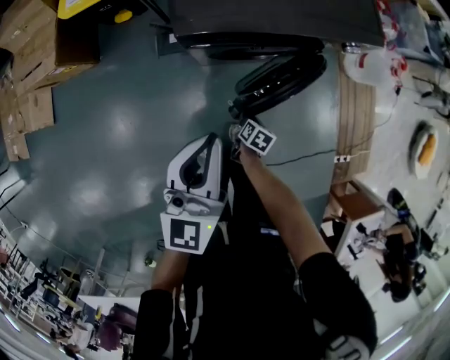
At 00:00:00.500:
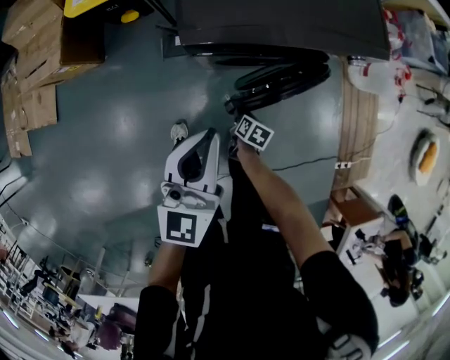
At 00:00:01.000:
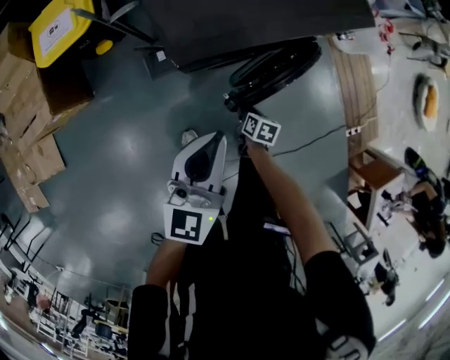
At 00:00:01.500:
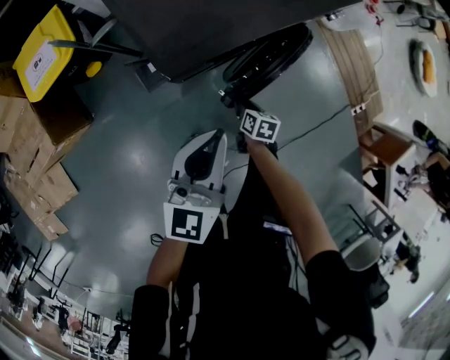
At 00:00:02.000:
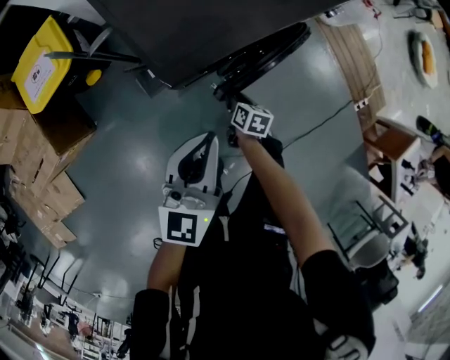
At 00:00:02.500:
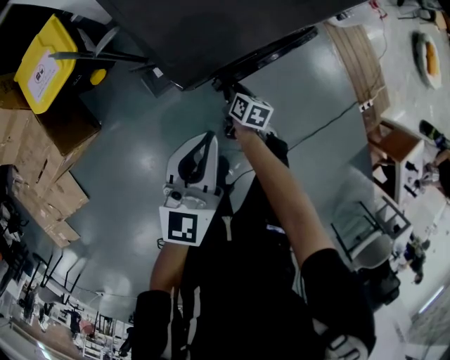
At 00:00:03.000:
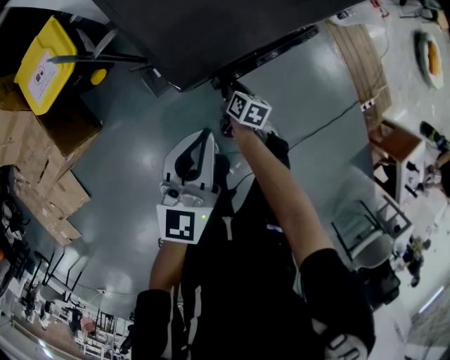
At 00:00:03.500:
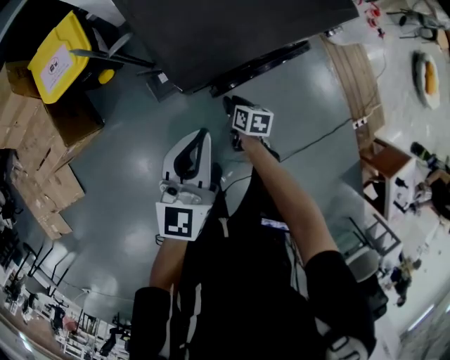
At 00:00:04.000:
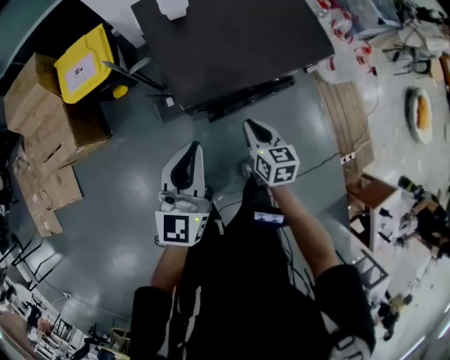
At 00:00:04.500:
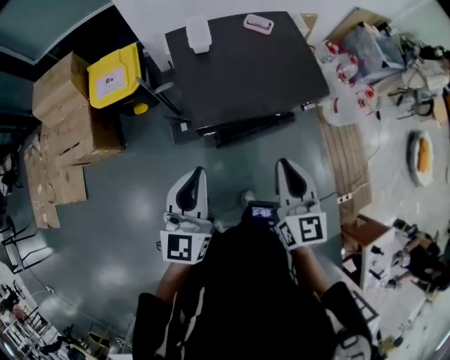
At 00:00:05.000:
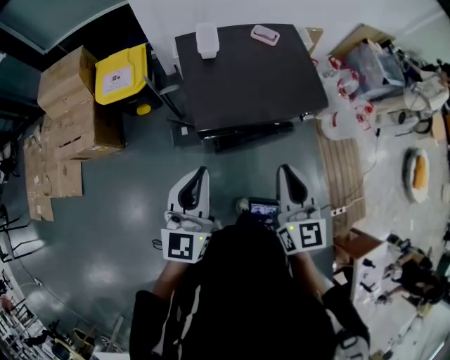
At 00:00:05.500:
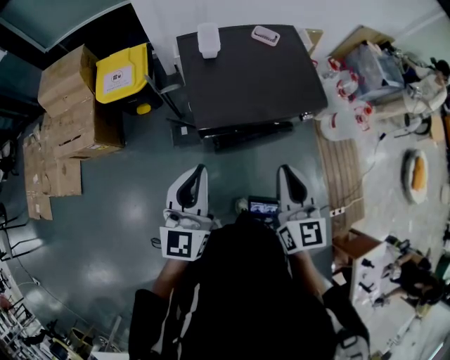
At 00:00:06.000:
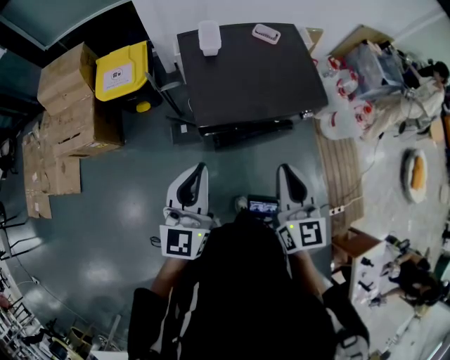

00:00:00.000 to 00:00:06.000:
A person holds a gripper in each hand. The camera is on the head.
00:00:00.000 to 00:00:02.000: The right gripper shifts about 15 cm to the left and forward. The left gripper goes some 10 cm forward, to the left and downward, and changes its angle by about 30 degrees.
00:00:02.000 to 00:00:04.000: The right gripper is displaced upward by some 30 cm, rotates roughly 40 degrees, and closes. Meanwhile the left gripper travels upward by about 15 cm.
00:00:04.000 to 00:00:06.000: The right gripper moves upward, approximately 25 cm, and changes its angle by about 30 degrees. The left gripper heads upward, covering about 10 cm.

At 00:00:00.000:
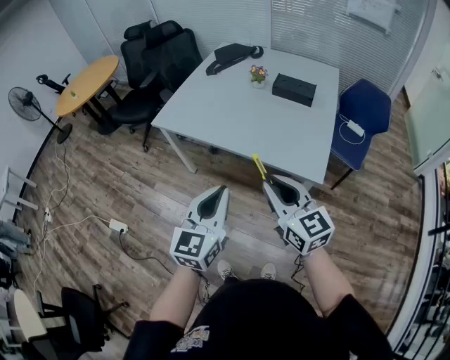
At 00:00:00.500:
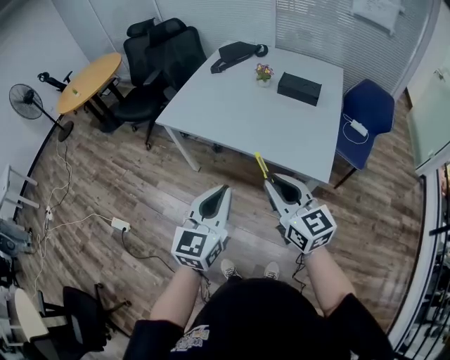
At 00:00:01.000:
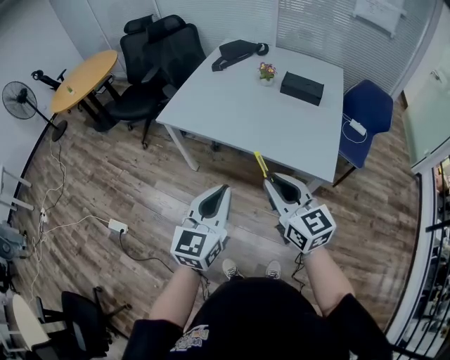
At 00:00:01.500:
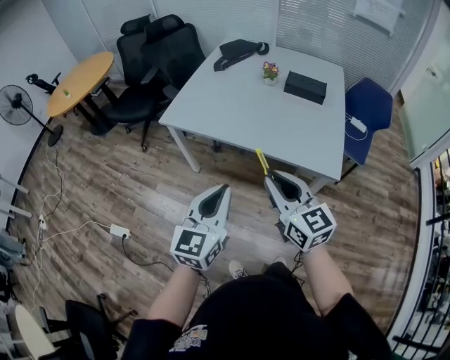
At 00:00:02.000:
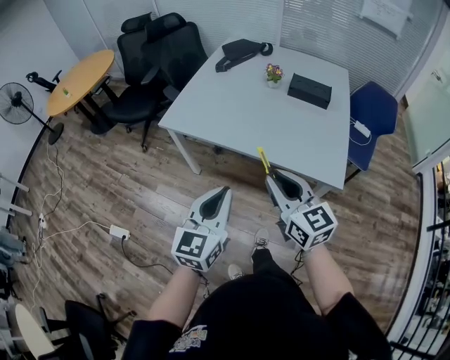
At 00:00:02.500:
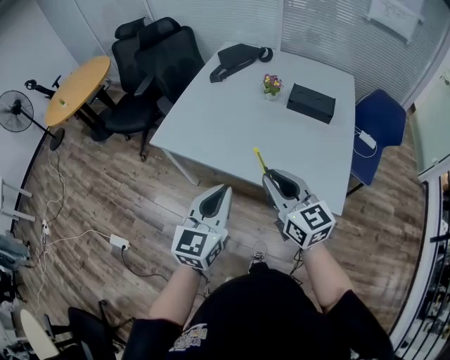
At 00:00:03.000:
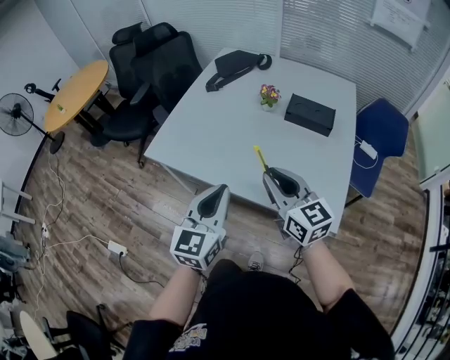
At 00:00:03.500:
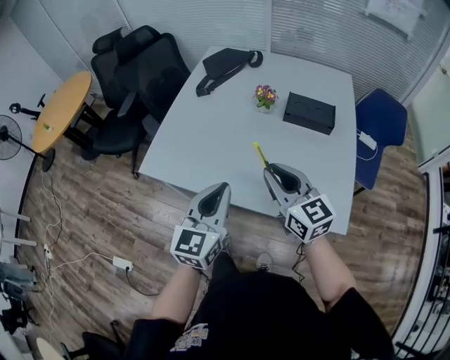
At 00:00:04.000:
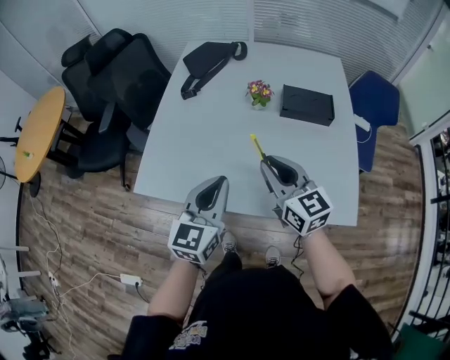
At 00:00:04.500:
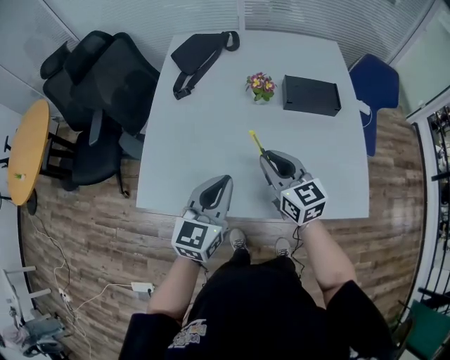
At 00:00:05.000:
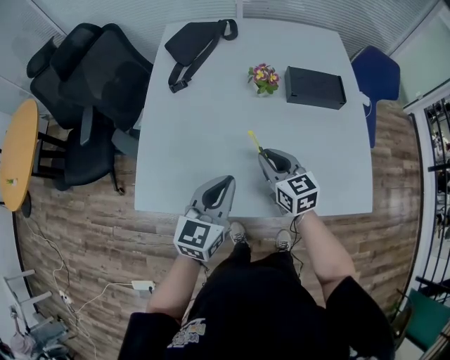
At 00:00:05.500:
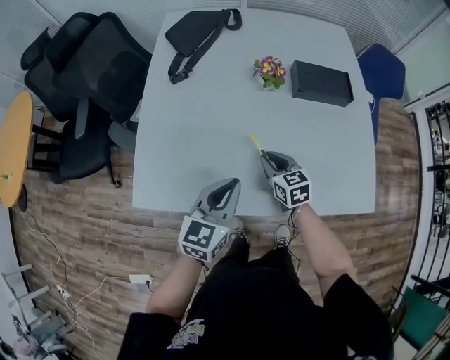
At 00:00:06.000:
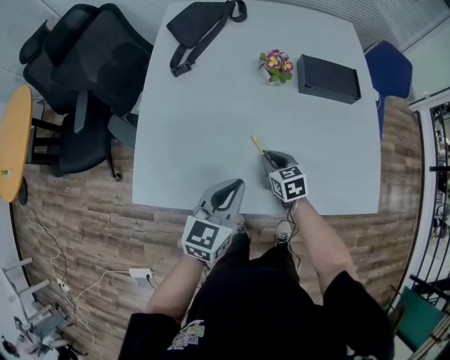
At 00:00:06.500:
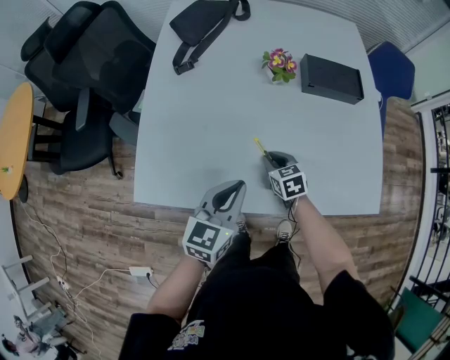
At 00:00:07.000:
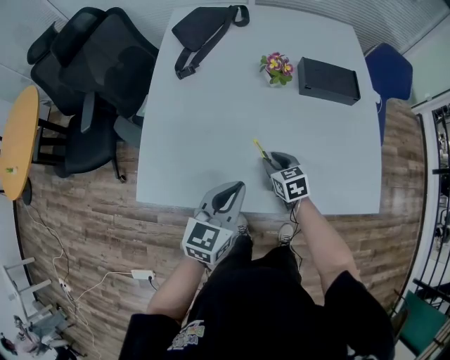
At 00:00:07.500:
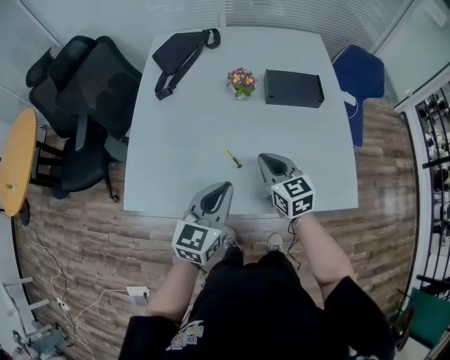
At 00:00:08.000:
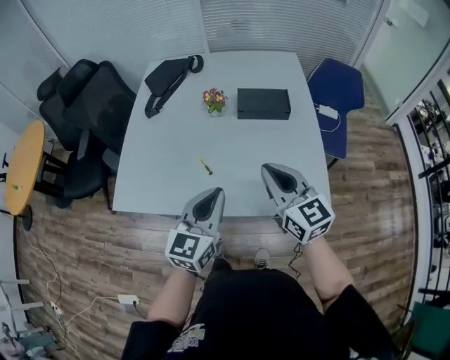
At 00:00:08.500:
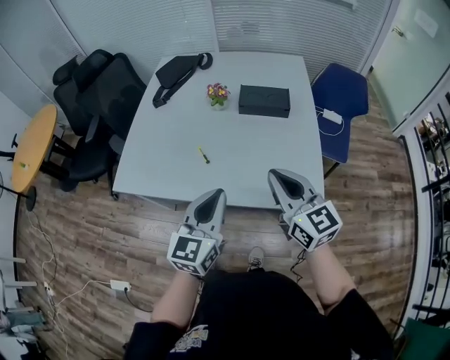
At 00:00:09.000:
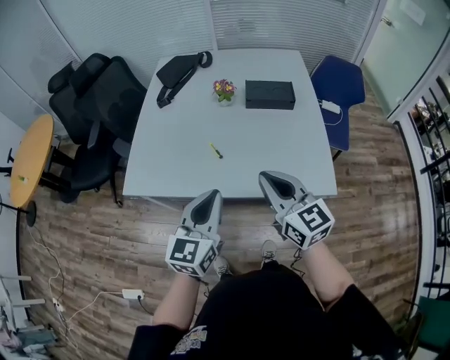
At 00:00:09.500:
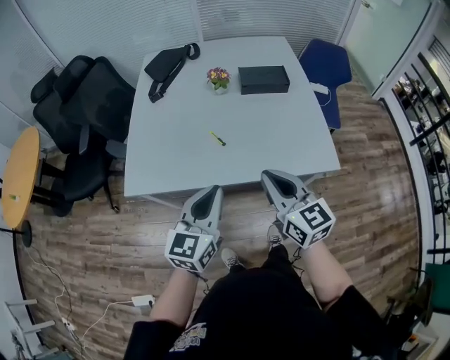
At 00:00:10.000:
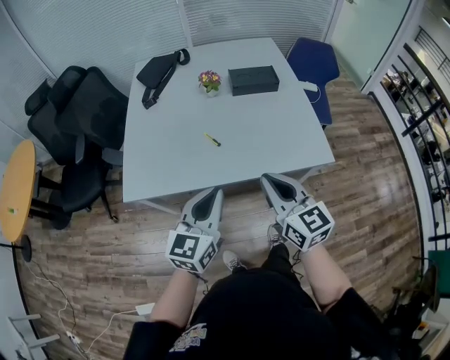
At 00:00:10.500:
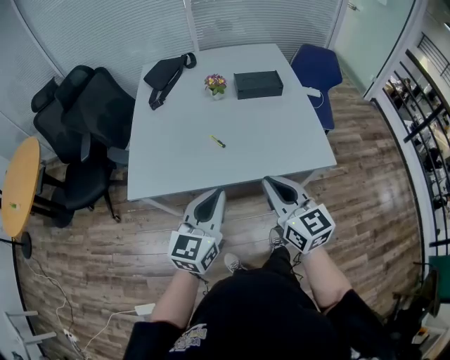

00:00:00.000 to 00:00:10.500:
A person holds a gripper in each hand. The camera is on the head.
00:00:00.000 to 00:00:02.000: The two grippers go approximately 15 cm to the left and forward.
00:00:02.000 to 00:00:04.000: The grippers both shift forward by about 35 cm.
00:00:04.000 to 00:00:06.500: The left gripper is displaced downward by roughly 15 cm, and swivels roughly 20 degrees. The right gripper is displaced downward by some 30 cm, and tips its fingers downward by roughly 40 degrees.
00:00:06.500 to 00:00:08.500: The left gripper heads to the right, upward and backward, covering about 30 cm, and rotates roughly 20 degrees. Meanwhile the right gripper goes approximately 50 cm upward, to the right and backward, and angles its fingers upward, by about 40 degrees.
00:00:08.500 to 00:00:10.500: Both grippers travel together to the left and backward, roughly 20 cm.

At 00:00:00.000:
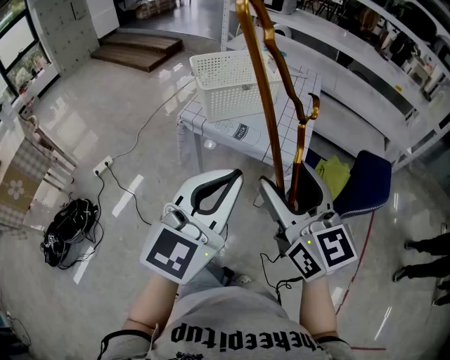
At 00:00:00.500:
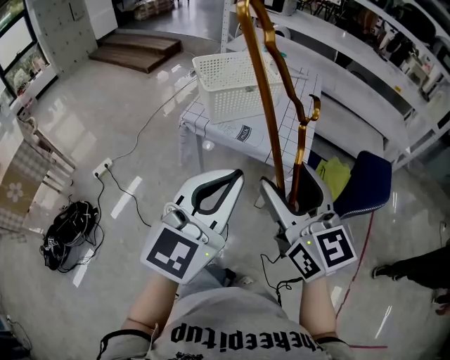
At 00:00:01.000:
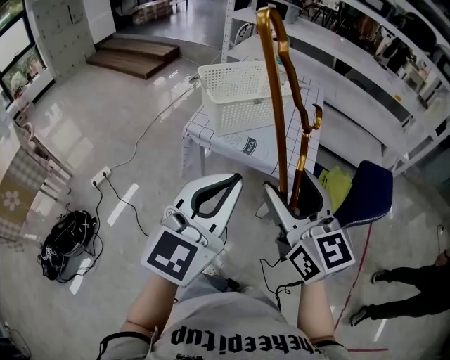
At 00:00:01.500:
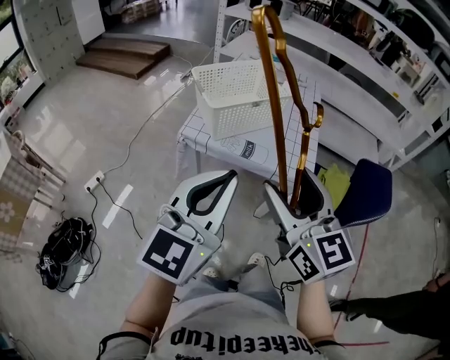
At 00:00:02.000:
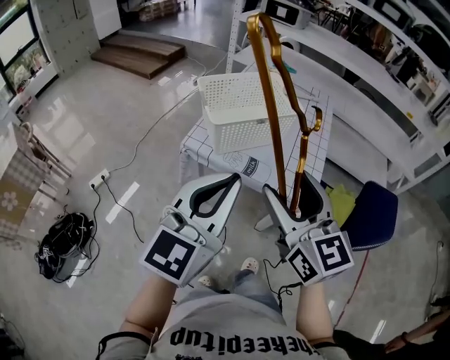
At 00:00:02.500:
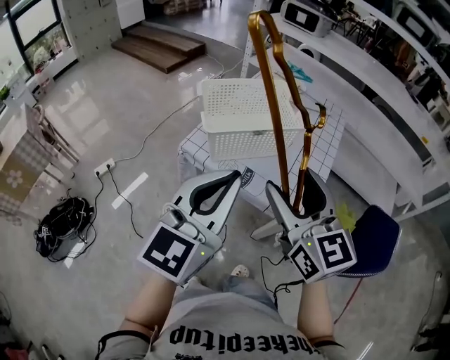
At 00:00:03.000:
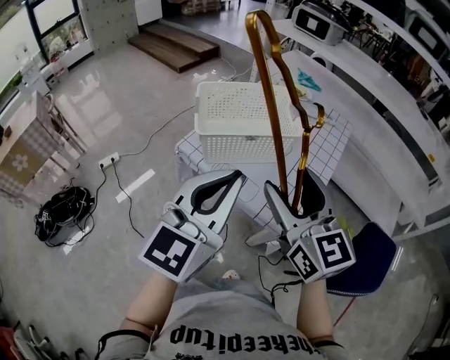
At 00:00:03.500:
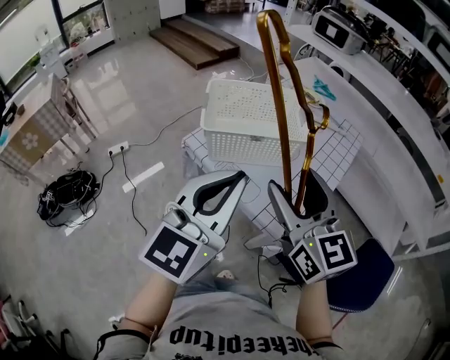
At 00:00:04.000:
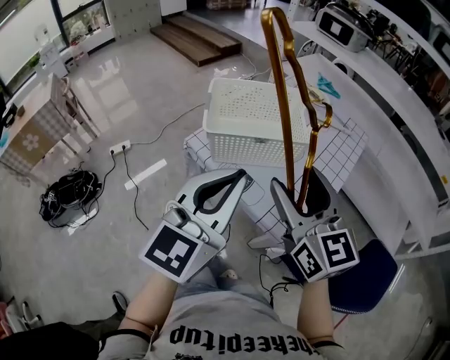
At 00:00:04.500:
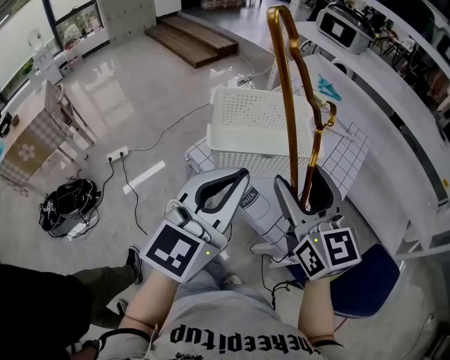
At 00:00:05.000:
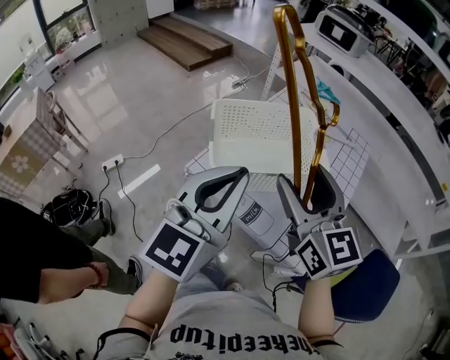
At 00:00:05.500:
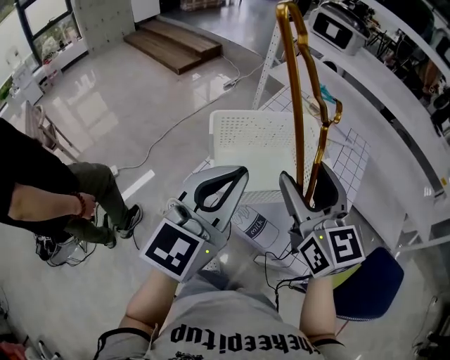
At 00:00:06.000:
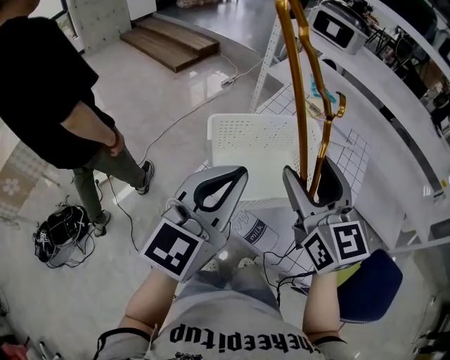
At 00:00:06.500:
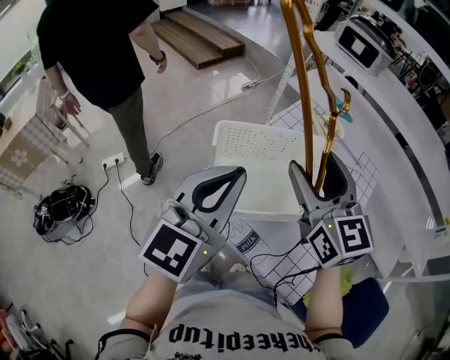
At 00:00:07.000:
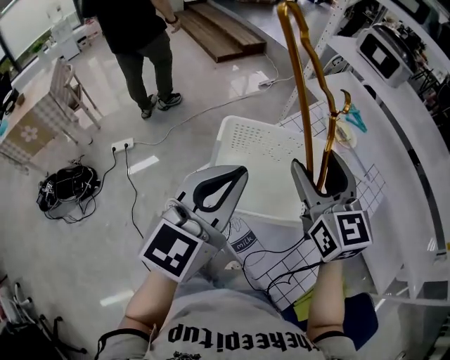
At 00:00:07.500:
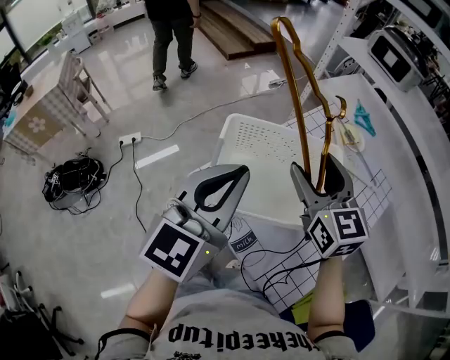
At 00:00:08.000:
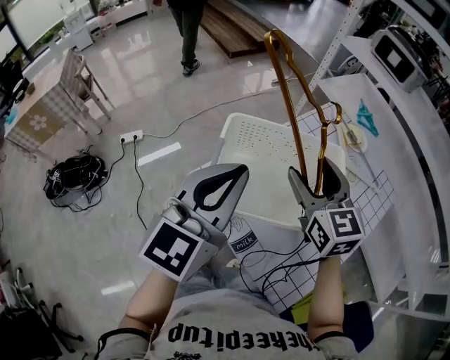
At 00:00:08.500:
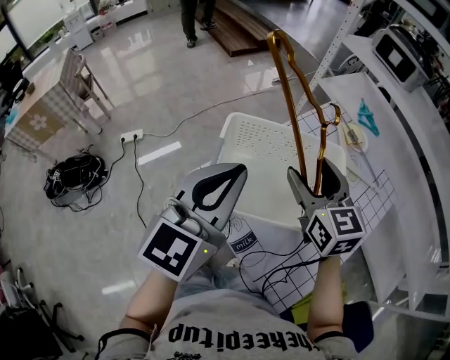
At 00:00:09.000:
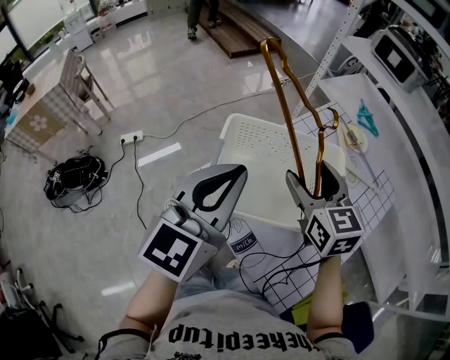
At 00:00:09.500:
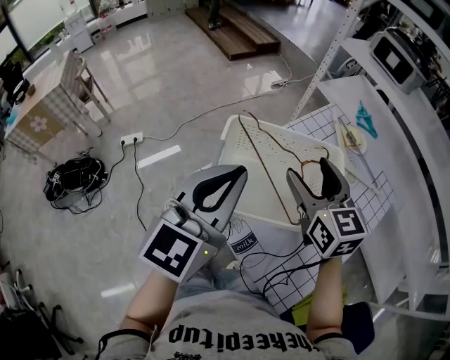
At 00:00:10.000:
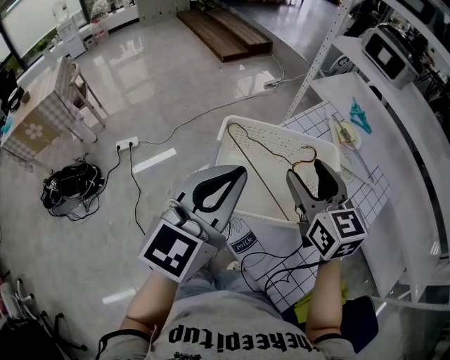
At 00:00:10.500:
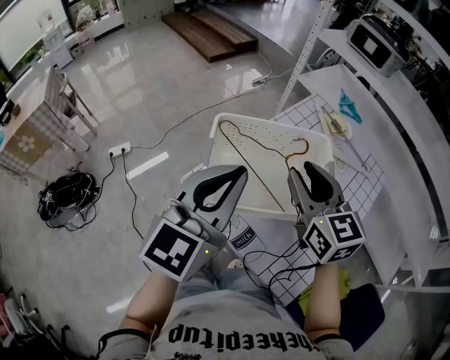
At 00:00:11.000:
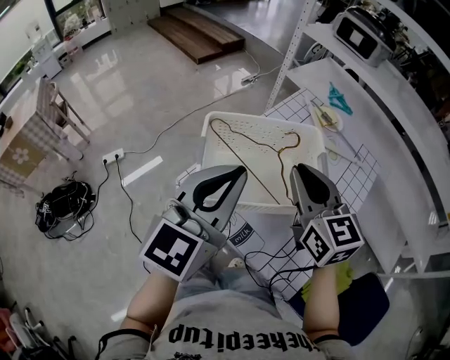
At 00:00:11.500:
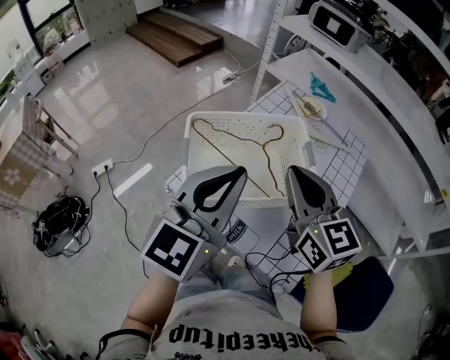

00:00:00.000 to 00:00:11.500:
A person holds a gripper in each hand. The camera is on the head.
00:00:00.000 to 00:00:02.000: Both grippers move forward and to the left, roughly 15 cm.
00:00:02.000 to 00:00:04.000: The left gripper travels to the right and forward by approximately 15 cm. The right gripper goes about 15 cm forward and to the right.
00:00:04.000 to 00:00:06.000: Both grippers travel together forward and to the left, approximately 20 cm.
00:00:06.000 to 00:00:07.500: The right gripper heads forward and downward, covering about 10 cm.
00:00:07.500 to 00:00:09.500: The grippers stay close to where they were, moving slightly.
00:00:09.500 to 00:00:11.500: The left gripper is displaced to the right by about 5 cm. Meanwhile the right gripper goes about 10 cm backward, and closes up.
